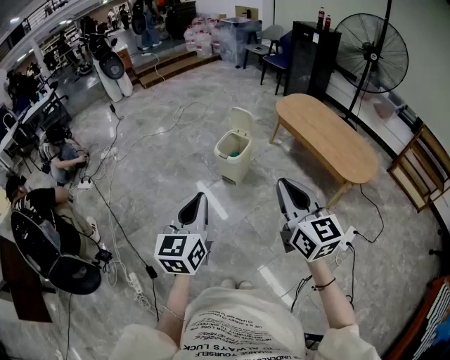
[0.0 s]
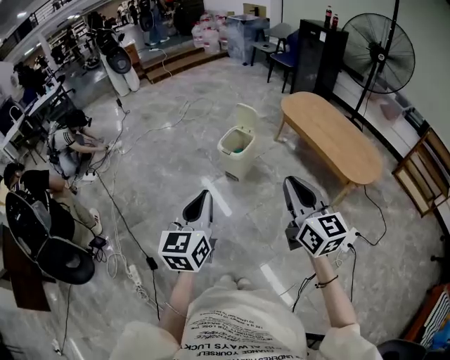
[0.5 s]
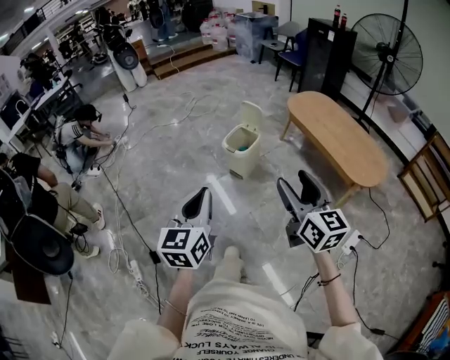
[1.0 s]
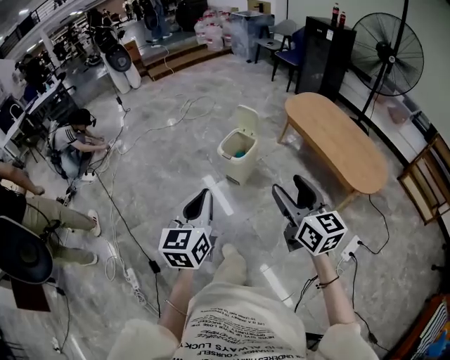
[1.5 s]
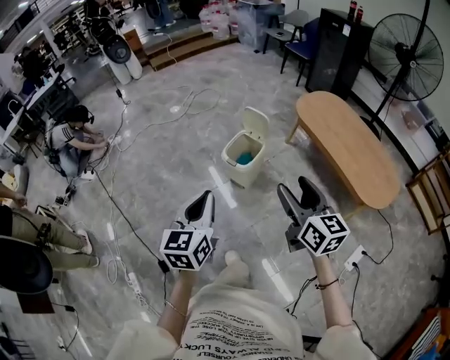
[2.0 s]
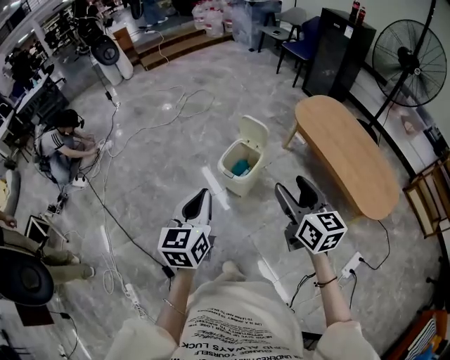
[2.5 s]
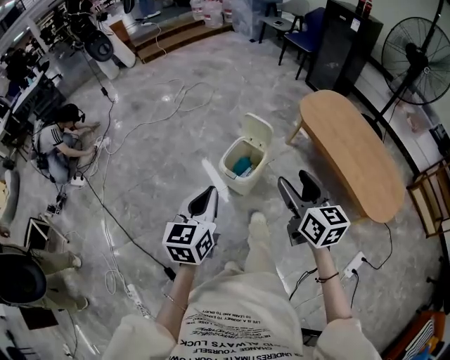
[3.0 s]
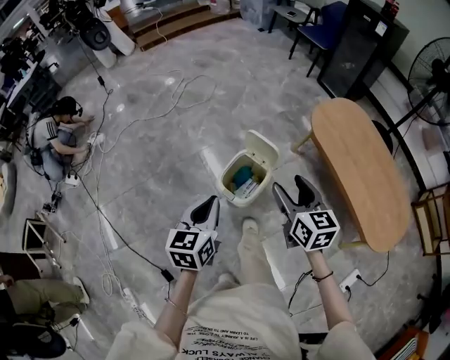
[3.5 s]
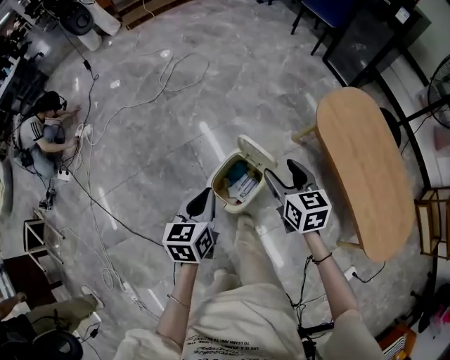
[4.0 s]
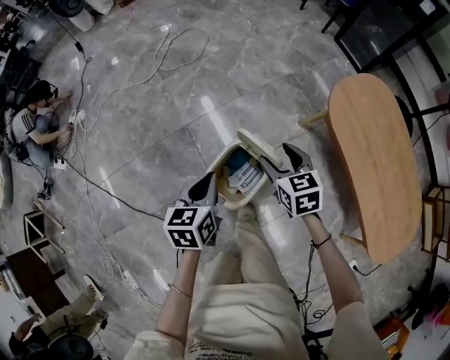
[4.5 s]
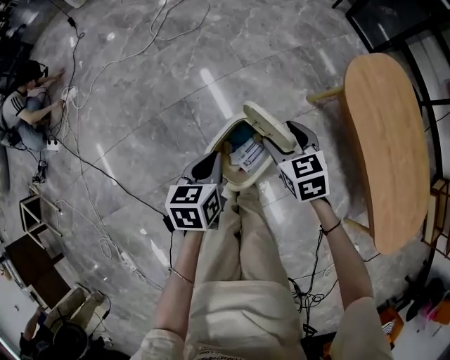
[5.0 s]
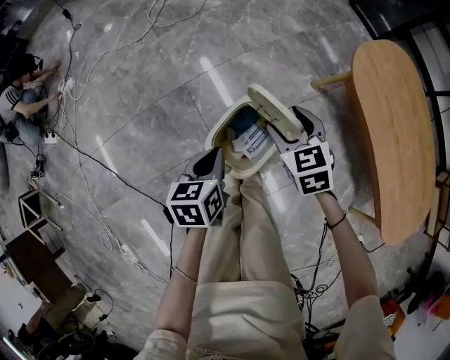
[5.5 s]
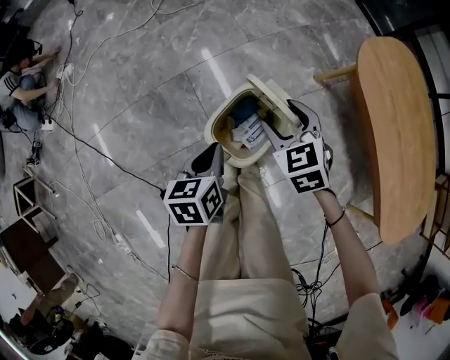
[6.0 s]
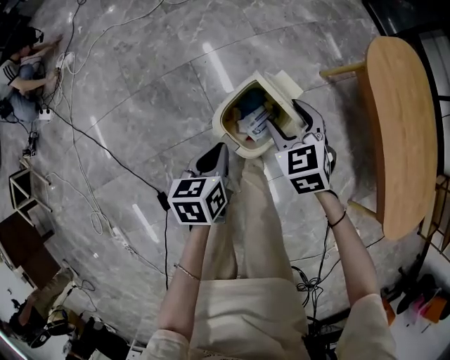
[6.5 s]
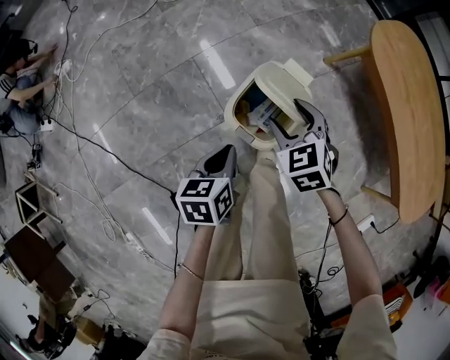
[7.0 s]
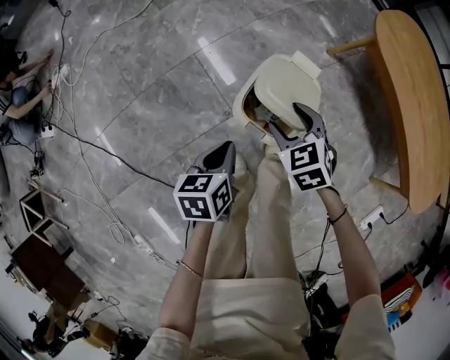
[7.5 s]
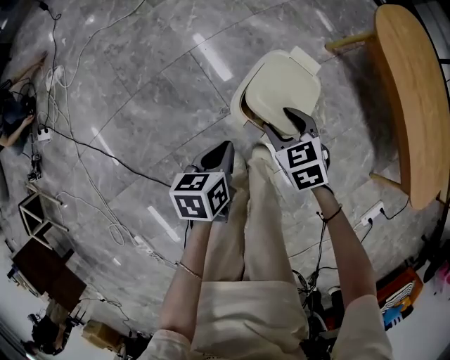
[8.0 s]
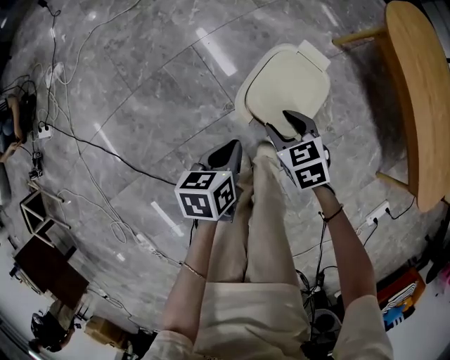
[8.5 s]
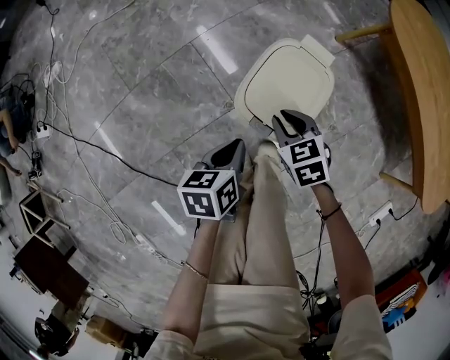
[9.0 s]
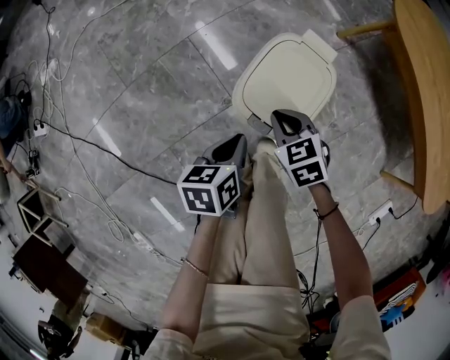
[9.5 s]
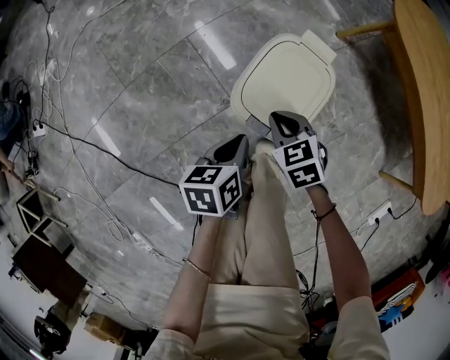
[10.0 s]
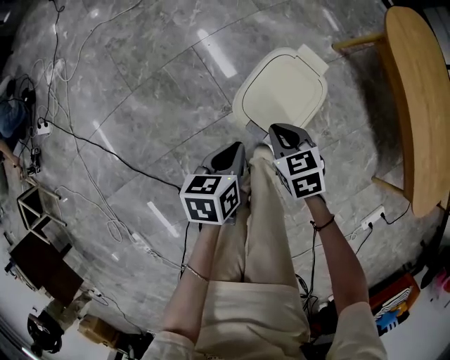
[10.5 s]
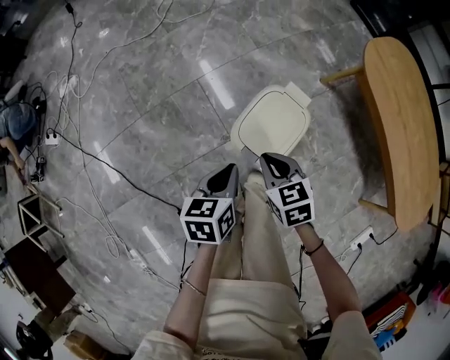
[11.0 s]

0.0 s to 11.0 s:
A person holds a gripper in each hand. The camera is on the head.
0.0 to 2.0 s: The grippers both shift forward by roughly 20 cm. The right gripper opens up.
2.0 to 3.5 s: Both grippers move forward, some 30 cm.
3.5 to 5.5 s: The two grippers go about 30 cm downward and forward. The right gripper turns by some 30 degrees, while the left gripper turns by approximately 20 degrees.
5.5 to 7.5 s: Both grippers move backward, to the left and downward, approximately 15 cm.
7.5 to 9.0 s: The right gripper moves downward, some 10 cm, and closes; the left gripper moves downward, approximately 5 cm.
9.0 to 11.0 s: Both grippers move upward, some 10 cm.

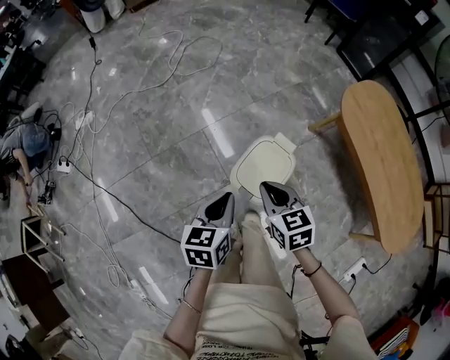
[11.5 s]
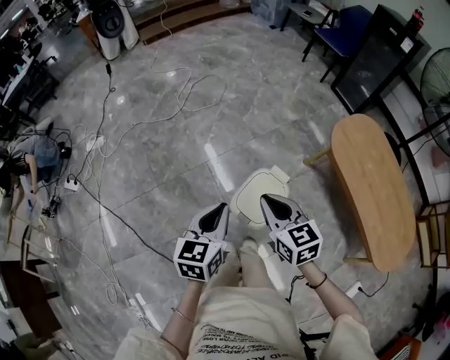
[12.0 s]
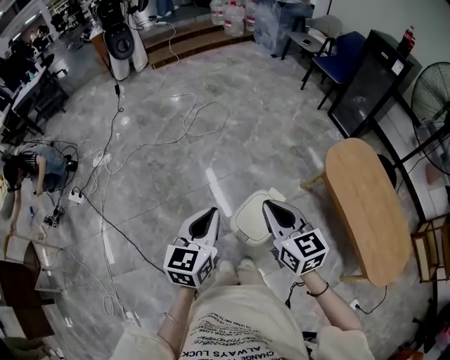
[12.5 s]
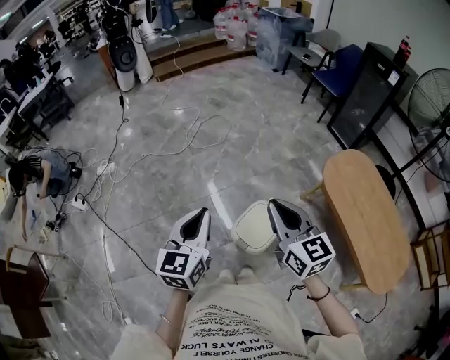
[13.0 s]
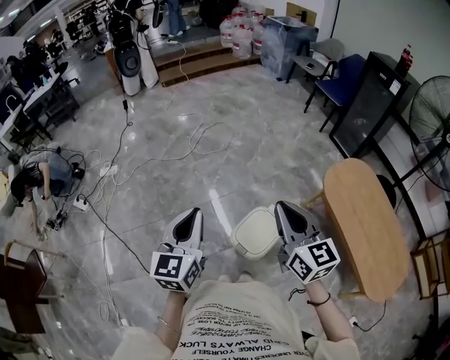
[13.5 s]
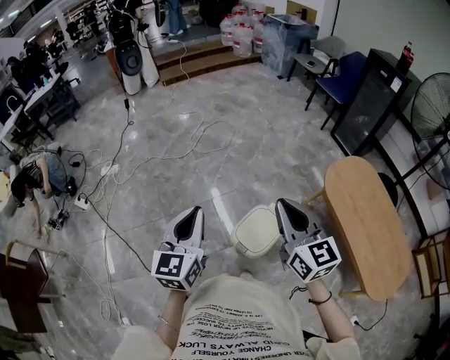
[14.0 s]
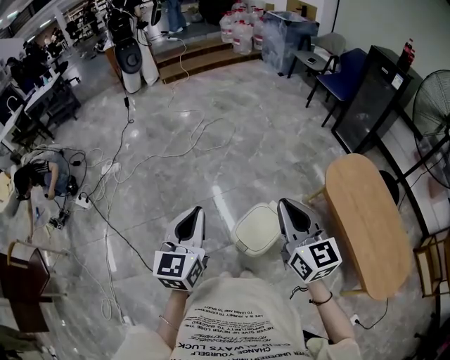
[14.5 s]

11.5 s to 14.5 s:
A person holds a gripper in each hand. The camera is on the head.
11.5 to 13.0 s: The two grippers go approximately 25 cm upward. The left gripper turns by about 30 degrees. The right gripper changes its angle by approximately 30 degrees.
13.0 to 14.5 s: The grippers move only a little.

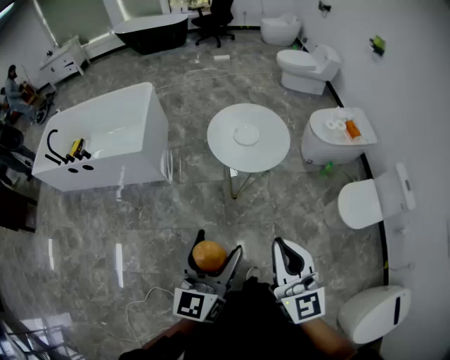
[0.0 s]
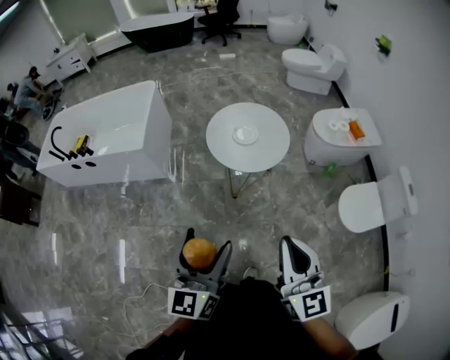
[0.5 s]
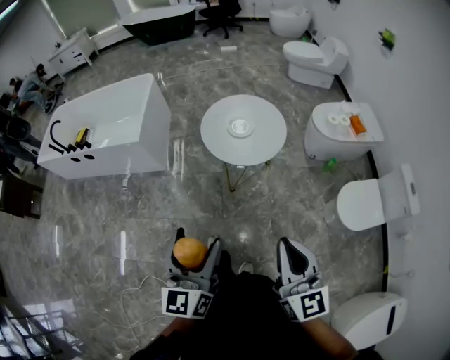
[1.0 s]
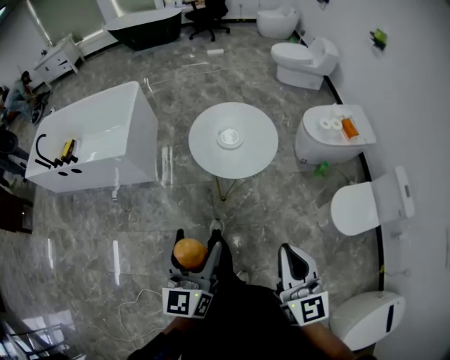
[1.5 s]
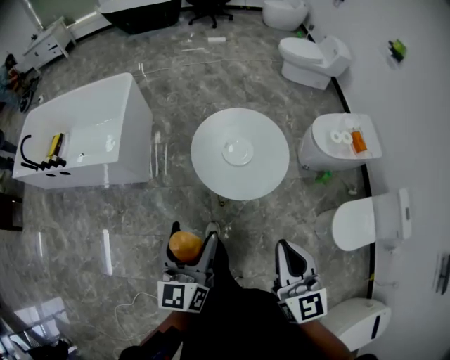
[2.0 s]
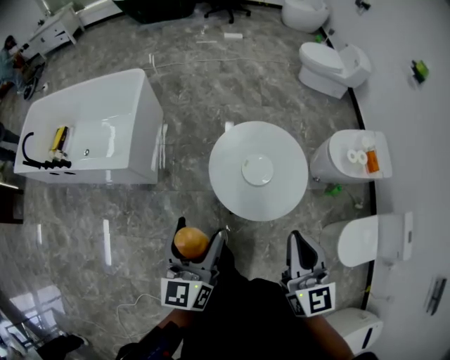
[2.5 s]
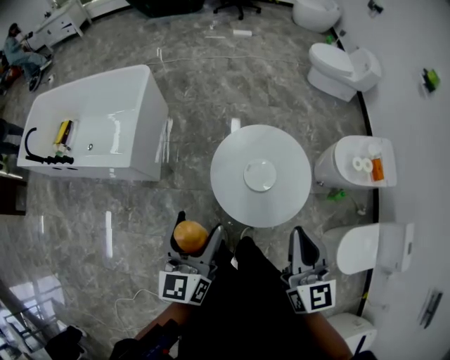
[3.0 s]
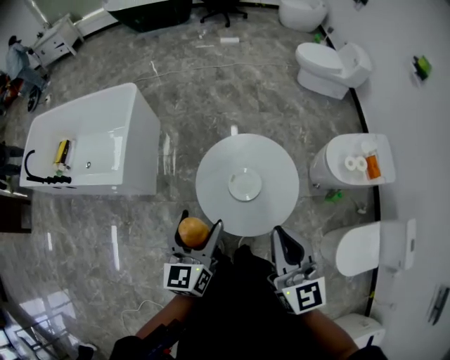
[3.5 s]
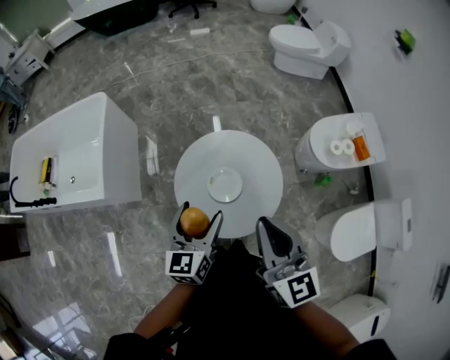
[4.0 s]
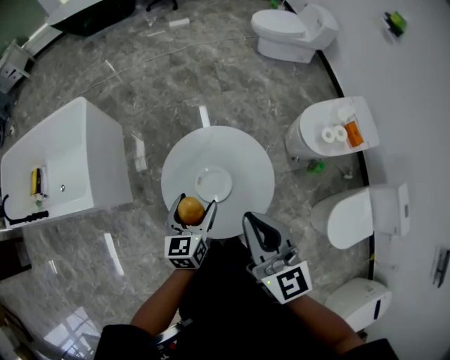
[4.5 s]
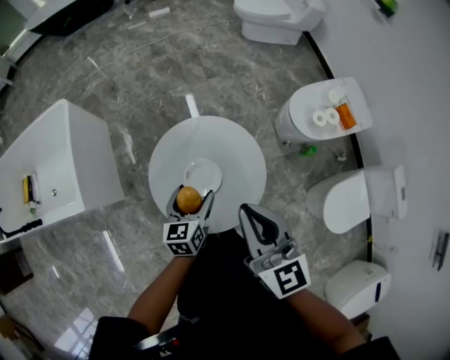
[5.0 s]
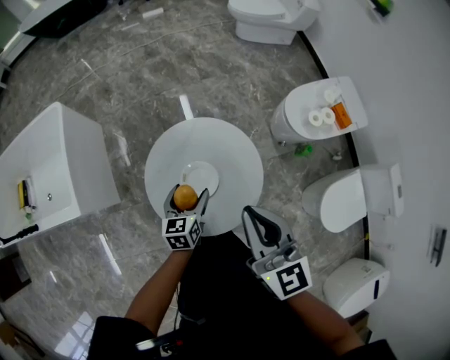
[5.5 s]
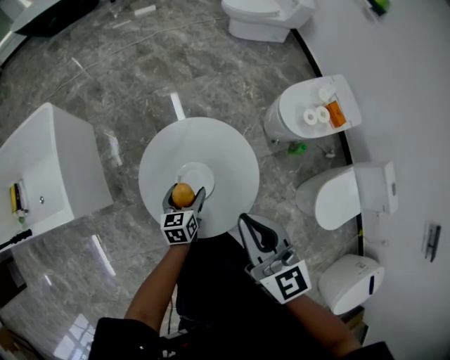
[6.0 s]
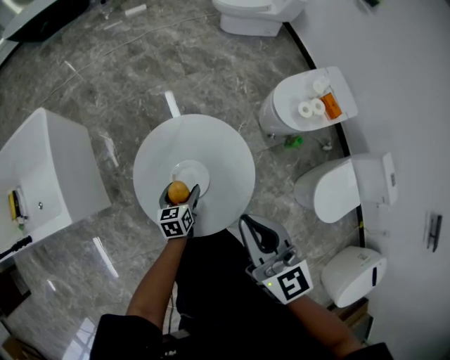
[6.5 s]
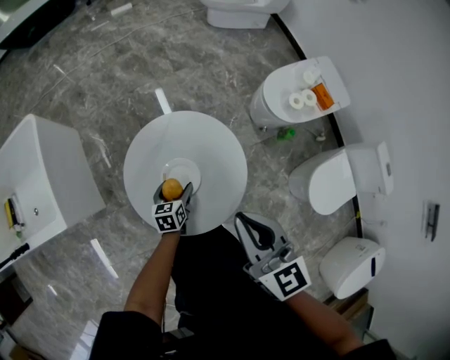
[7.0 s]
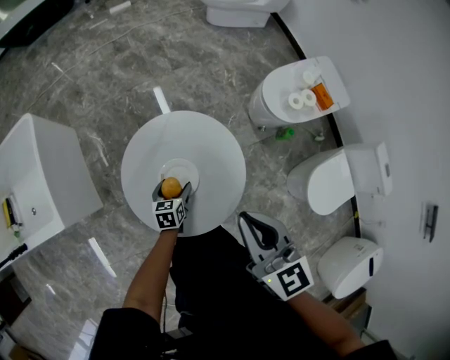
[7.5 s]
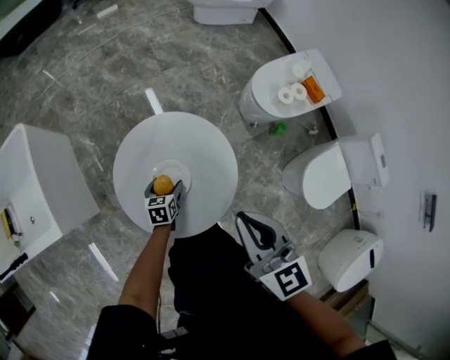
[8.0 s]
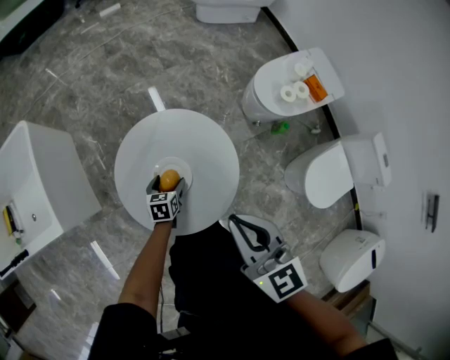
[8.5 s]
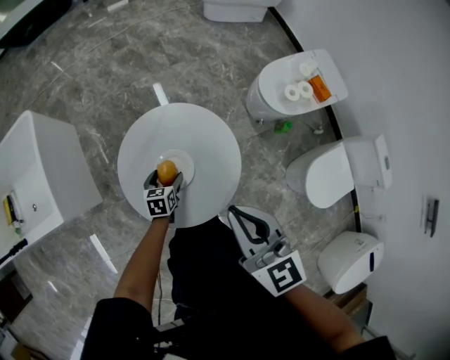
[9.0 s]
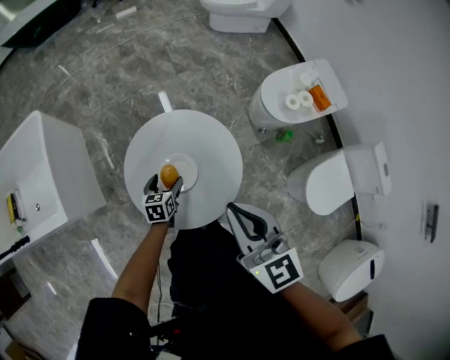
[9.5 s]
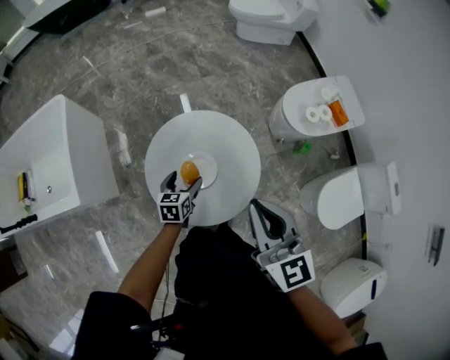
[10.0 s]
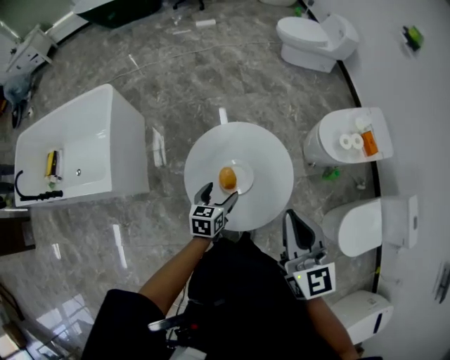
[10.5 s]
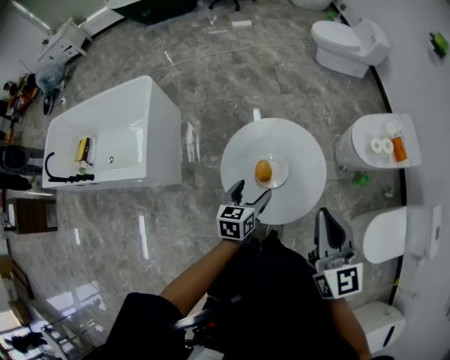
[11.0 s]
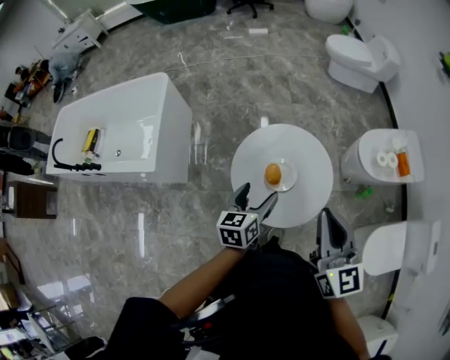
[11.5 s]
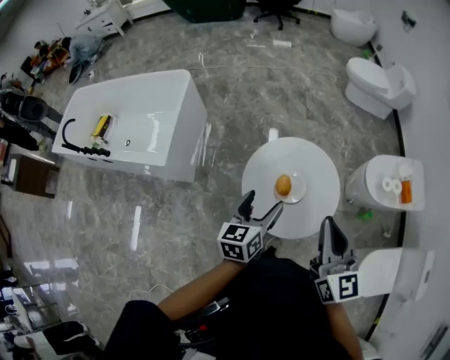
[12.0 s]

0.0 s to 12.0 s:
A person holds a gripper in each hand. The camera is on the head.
0.0 to 2.0 s: The two grippers go roughly 20 cm forward.
2.0 to 4.0 s: Both grippers move forward, approximately 25 cm.
4.0 to 6.0 s: The left gripper shifts roughly 20 cm downward, and swivels roughly 20 degrees; the right gripper is displaced downward by about 5 cm.
6.0 to 8.0 s: The right gripper travels to the right by some 5 cm; the left gripper heads downward, covering about 10 cm.
8.0 to 10.0 s: The left gripper moves upward, approximately 10 cm.
10.0 to 12.0 s: The left gripper is displaced upward and backward by approximately 25 cm, and turns by about 30 degrees. The right gripper shifts about 5 cm to the left.

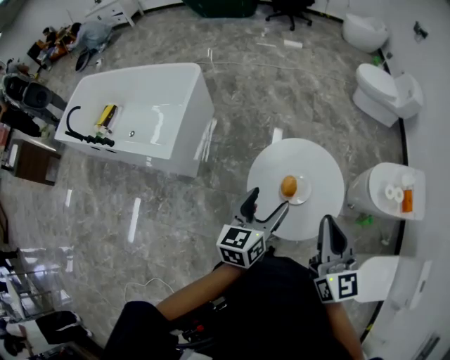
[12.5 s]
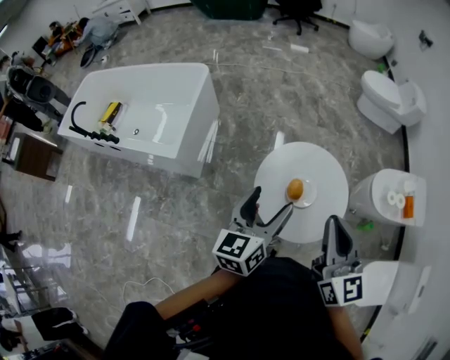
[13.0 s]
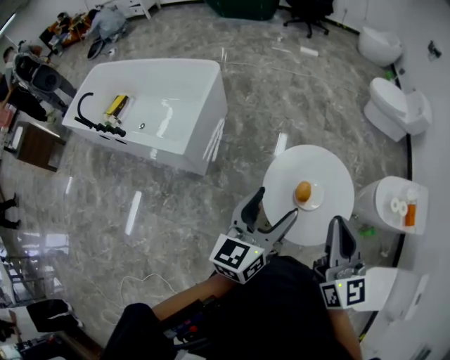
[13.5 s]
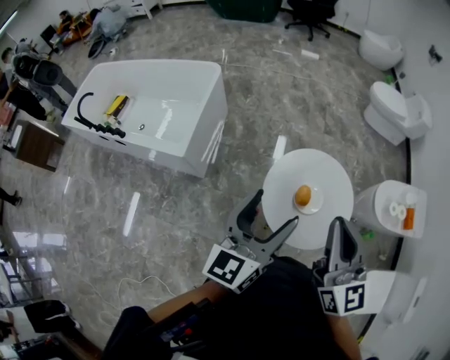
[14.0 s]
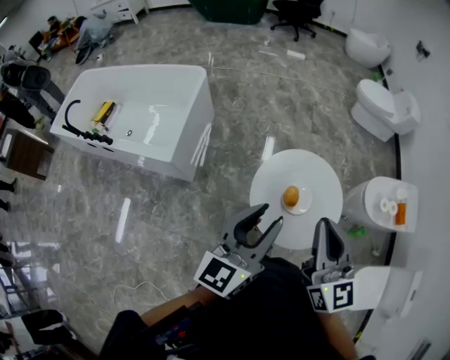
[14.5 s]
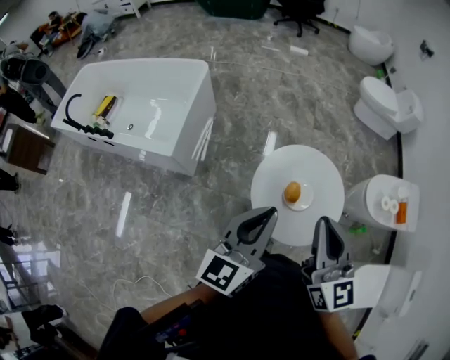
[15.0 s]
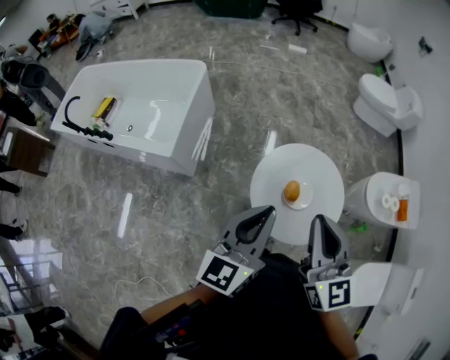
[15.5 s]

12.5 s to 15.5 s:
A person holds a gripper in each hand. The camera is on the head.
12.5 to 14.0 s: The left gripper travels upward and to the left by approximately 15 cm. Meanwhile the right gripper moves to the left and upward, approximately 10 cm.
14.0 to 15.5 s: The left gripper closes.
